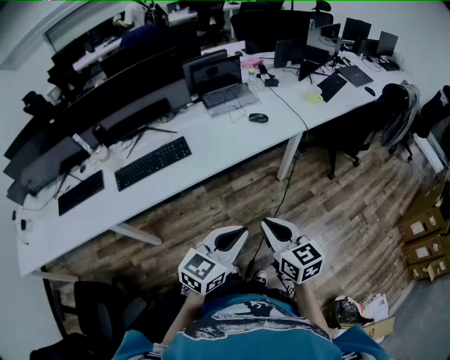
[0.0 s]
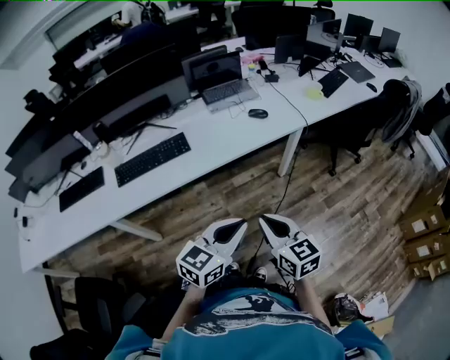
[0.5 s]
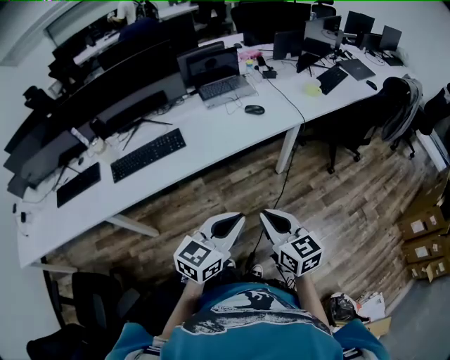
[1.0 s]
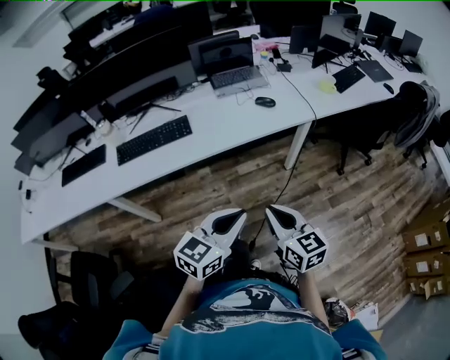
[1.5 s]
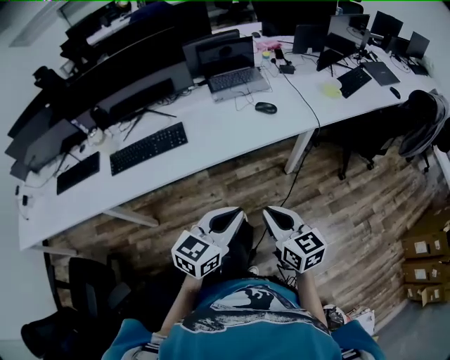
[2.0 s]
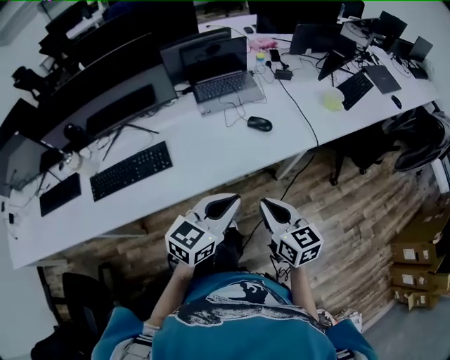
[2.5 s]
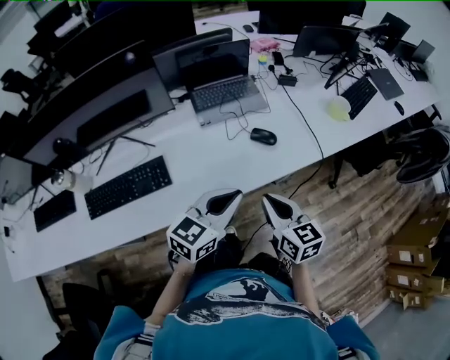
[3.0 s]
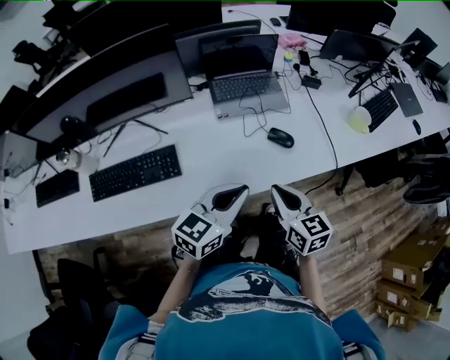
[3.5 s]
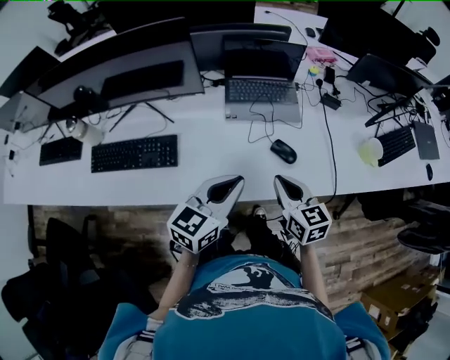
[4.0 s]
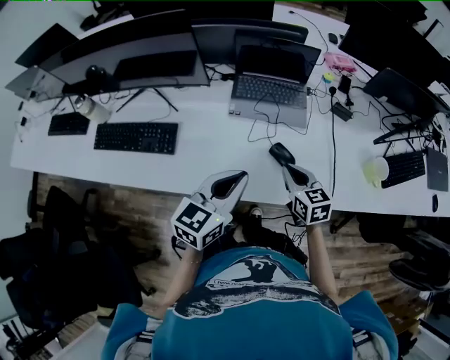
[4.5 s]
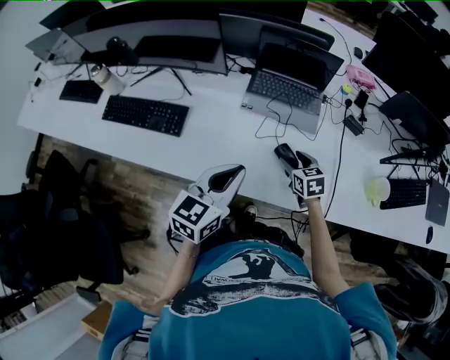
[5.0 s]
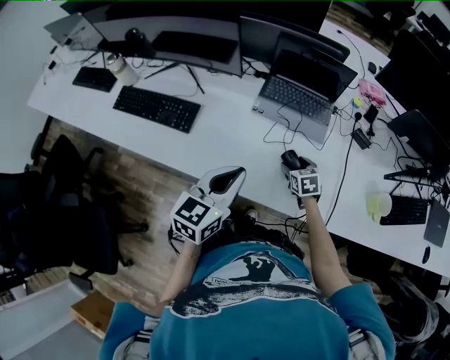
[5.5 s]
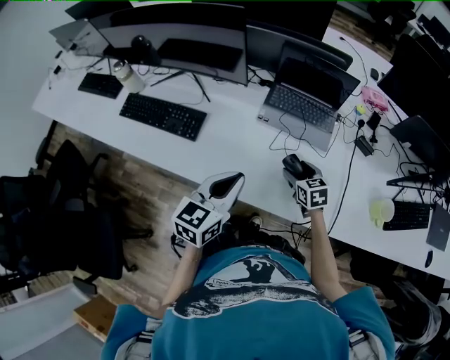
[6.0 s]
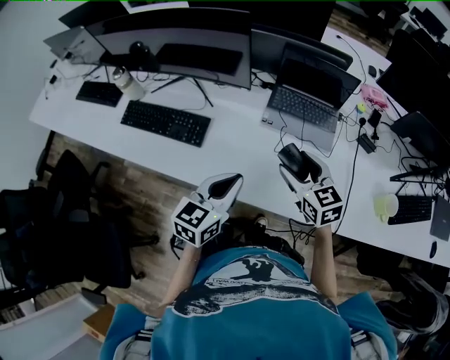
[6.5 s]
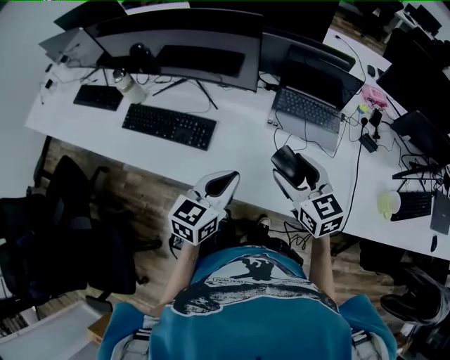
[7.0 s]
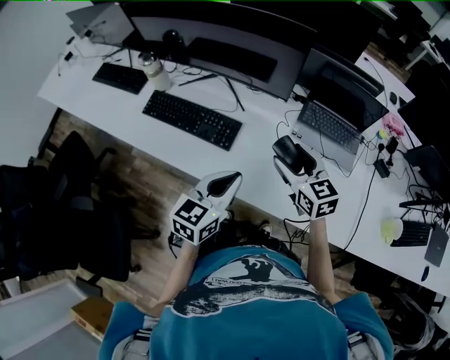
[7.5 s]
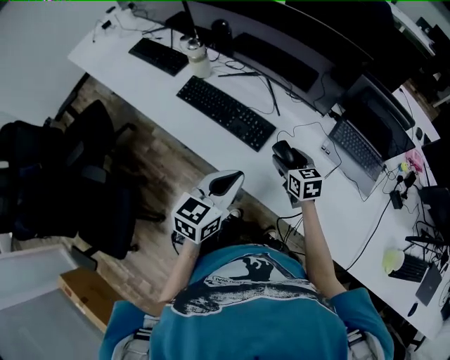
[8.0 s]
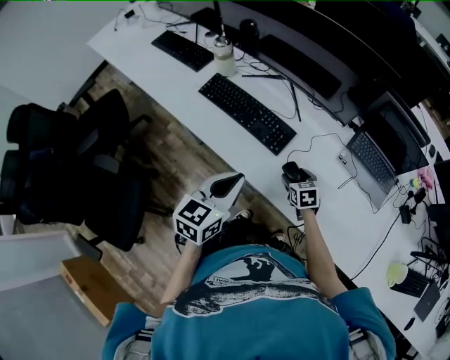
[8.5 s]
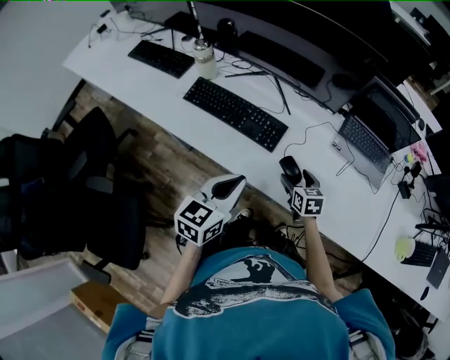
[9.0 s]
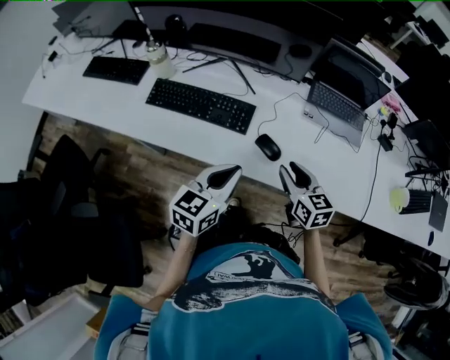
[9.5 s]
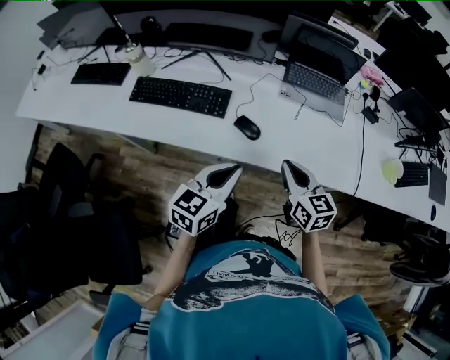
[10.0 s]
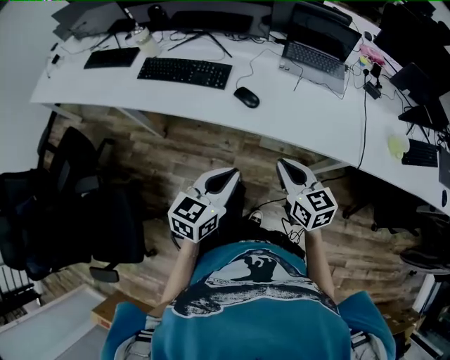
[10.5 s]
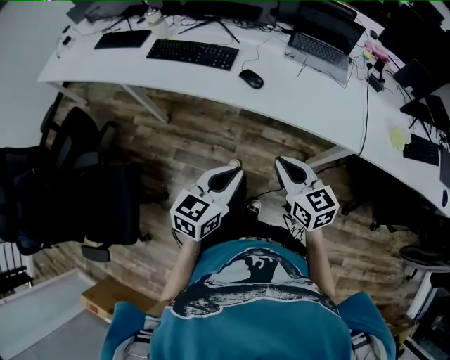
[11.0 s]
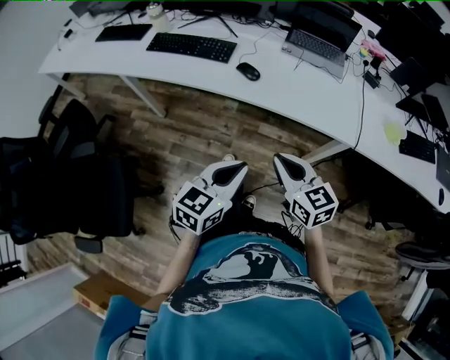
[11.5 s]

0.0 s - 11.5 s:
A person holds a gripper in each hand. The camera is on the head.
0.0 s - 2.0 s: The right gripper heads forward and to the right, covering some 10 cm. The left gripper travels forward by roughly 10 cm.
2.0 s - 4.0 s: The two grippers go some 35 cm forward.
4.0 s - 6.0 s: The right gripper moves downward and forward, about 20 cm, swivels roughly 30 degrees, and opens up. Meanwhile the left gripper changes its angle by approximately 30 degrees.
6.0 s - 7.5 s: The left gripper travels to the left by roughly 15 cm; the right gripper travels to the left and upward by roughly 25 cm, and turns by about 20 degrees.
7.5 s - 9.5 s: The right gripper travels backward and to the left by about 10 cm, travels downward and back again, some 25 cm each way, and closes its fingers; the left gripper heads to the left, covering about 10 cm.
9.5 s - 11.5 s: The right gripper heads backward, covering some 30 cm, and closes its fingers. The left gripper travels backward and to the right by approximately 30 cm.
